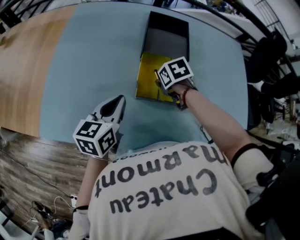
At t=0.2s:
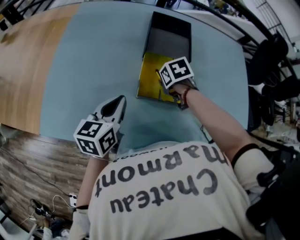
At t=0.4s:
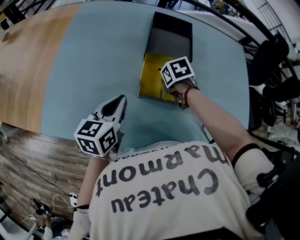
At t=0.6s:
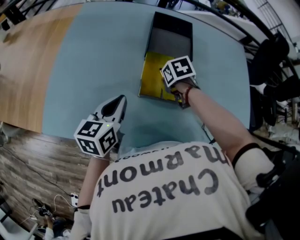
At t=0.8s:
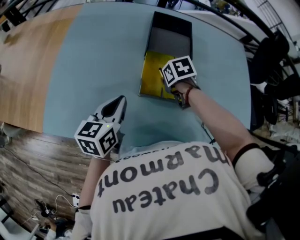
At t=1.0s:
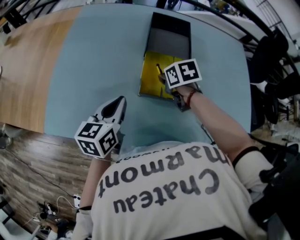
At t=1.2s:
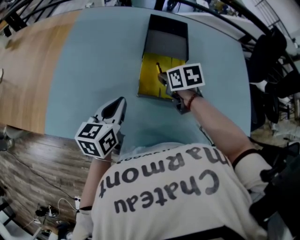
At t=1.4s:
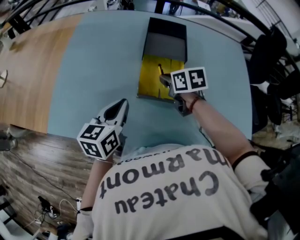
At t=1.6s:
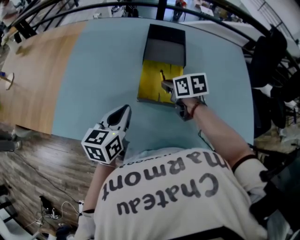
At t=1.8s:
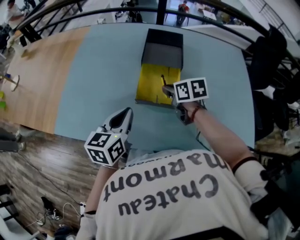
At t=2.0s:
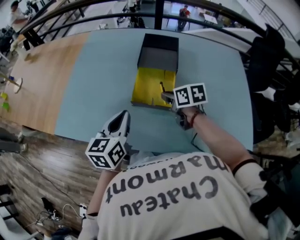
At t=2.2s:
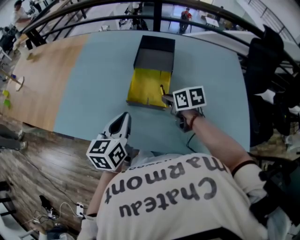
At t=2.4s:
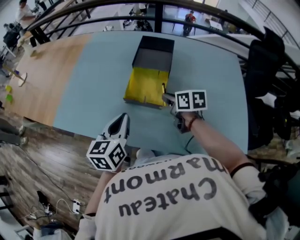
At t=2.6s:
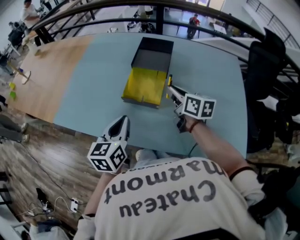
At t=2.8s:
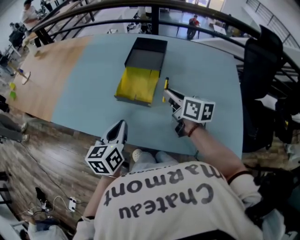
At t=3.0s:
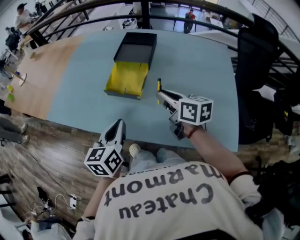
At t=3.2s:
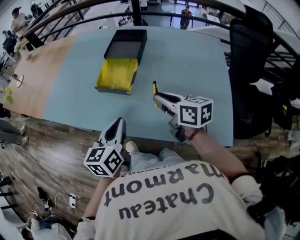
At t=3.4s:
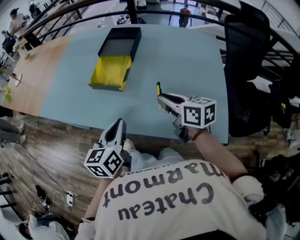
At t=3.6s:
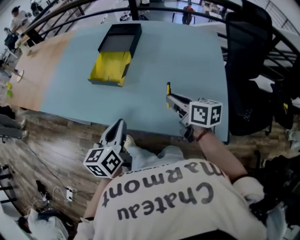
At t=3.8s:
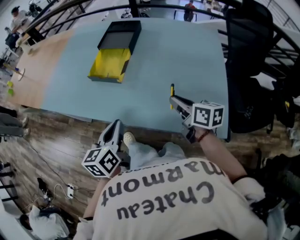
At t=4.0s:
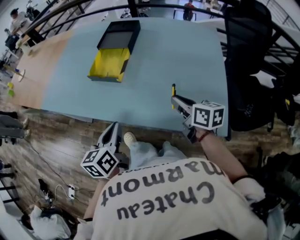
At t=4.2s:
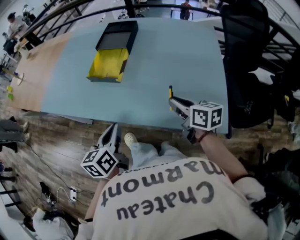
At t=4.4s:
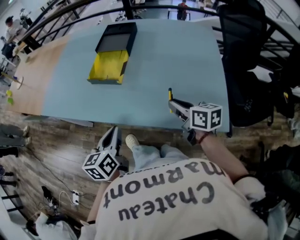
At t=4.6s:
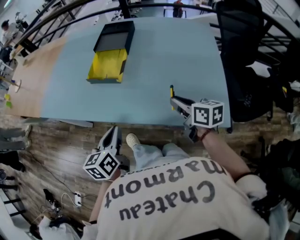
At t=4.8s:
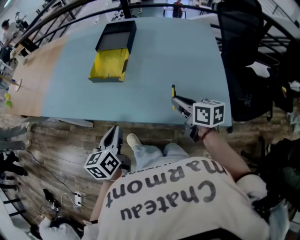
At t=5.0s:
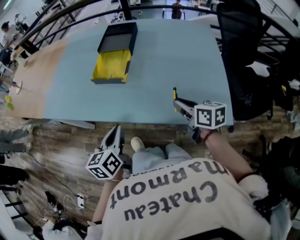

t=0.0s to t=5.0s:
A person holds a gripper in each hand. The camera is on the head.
t=0.0s to t=1.6s: The left gripper ends up approximately 5 cm from where it was, while the right gripper moves upward, some 10 cm, and changes its angle by about 30 degrees.
t=1.6s to t=3.4s: The two grippers go some 30 cm backward and to the right. The right gripper swivels roughly 30 degrees.
t=3.4s to t=5.0s: The left gripper travels to the left and backward by about 10 cm, while the right gripper is displaced backward by approximately 10 cm.

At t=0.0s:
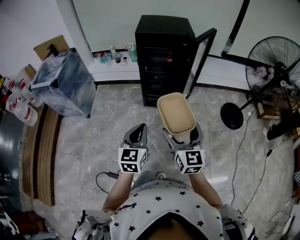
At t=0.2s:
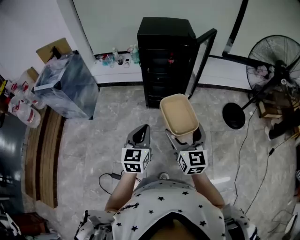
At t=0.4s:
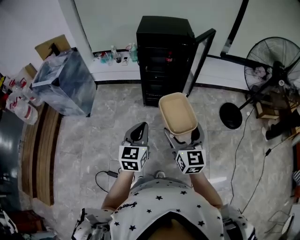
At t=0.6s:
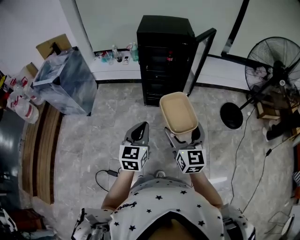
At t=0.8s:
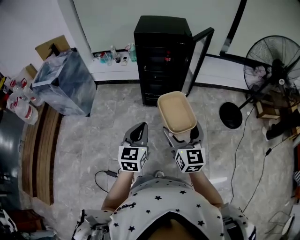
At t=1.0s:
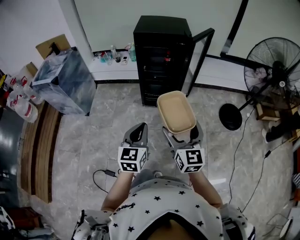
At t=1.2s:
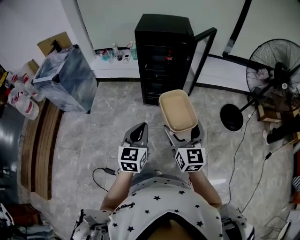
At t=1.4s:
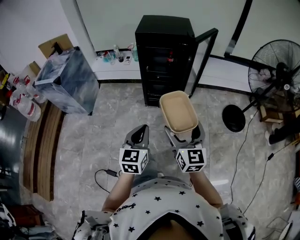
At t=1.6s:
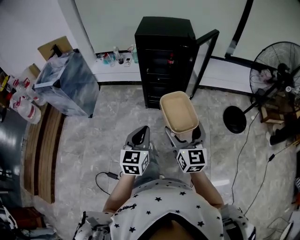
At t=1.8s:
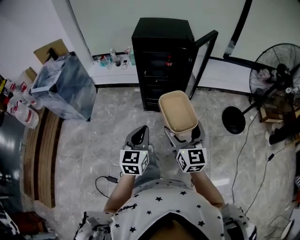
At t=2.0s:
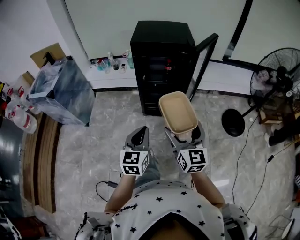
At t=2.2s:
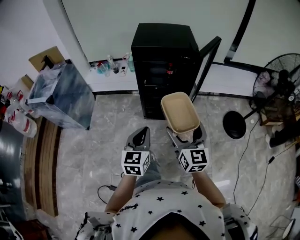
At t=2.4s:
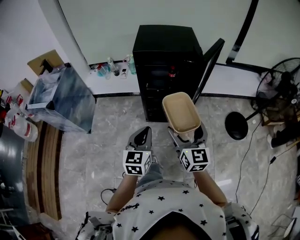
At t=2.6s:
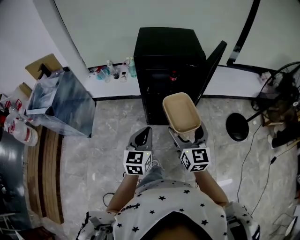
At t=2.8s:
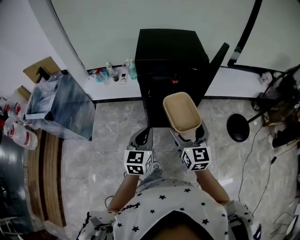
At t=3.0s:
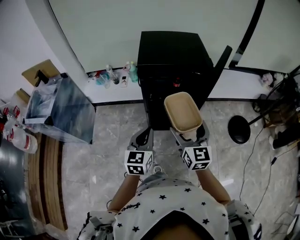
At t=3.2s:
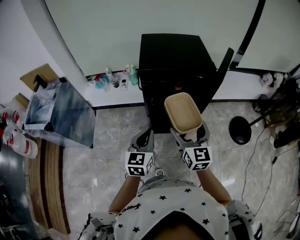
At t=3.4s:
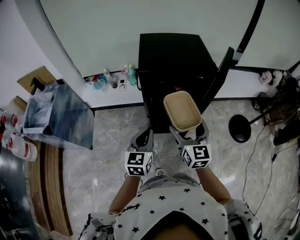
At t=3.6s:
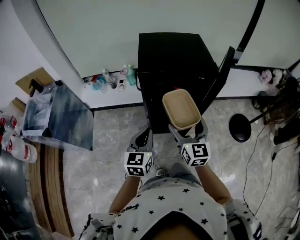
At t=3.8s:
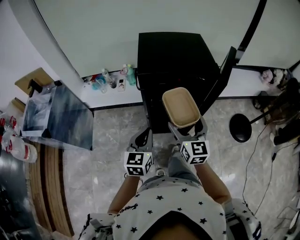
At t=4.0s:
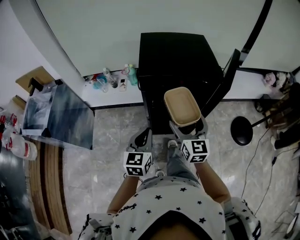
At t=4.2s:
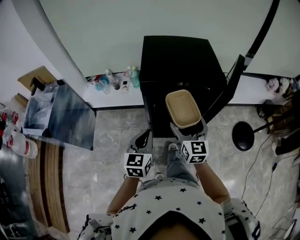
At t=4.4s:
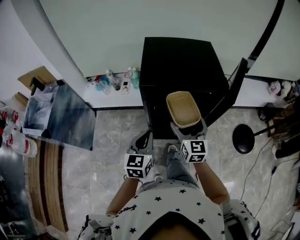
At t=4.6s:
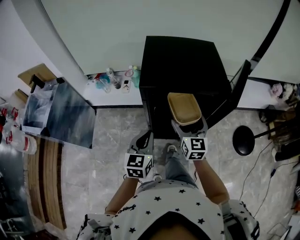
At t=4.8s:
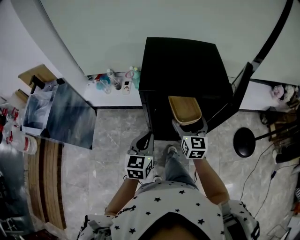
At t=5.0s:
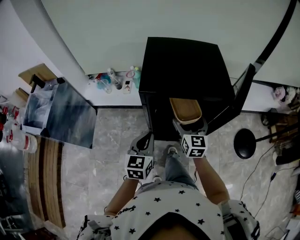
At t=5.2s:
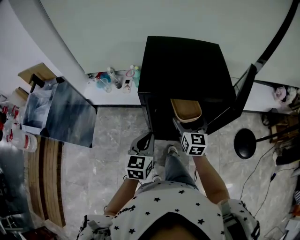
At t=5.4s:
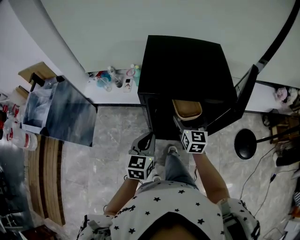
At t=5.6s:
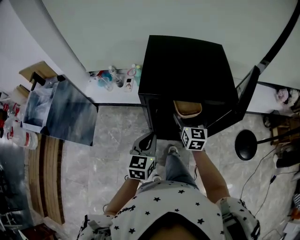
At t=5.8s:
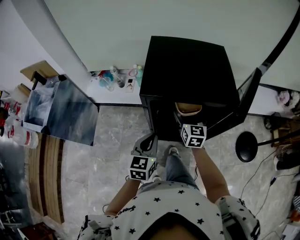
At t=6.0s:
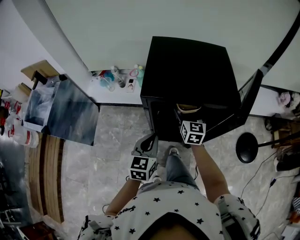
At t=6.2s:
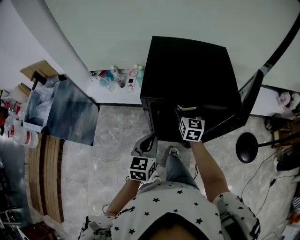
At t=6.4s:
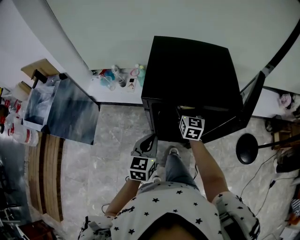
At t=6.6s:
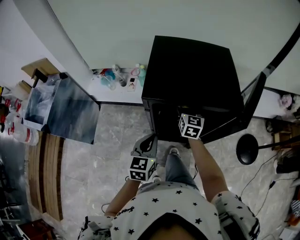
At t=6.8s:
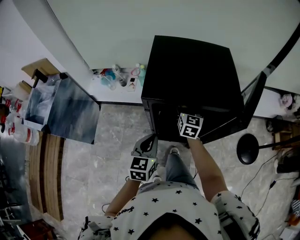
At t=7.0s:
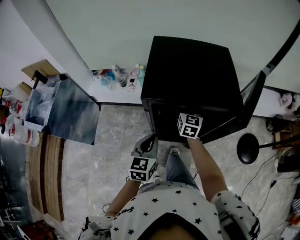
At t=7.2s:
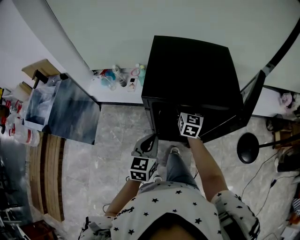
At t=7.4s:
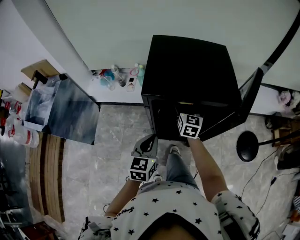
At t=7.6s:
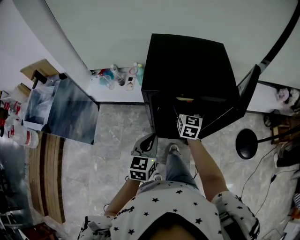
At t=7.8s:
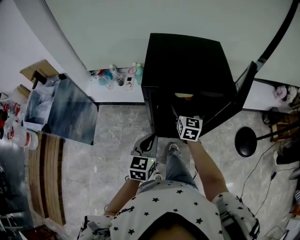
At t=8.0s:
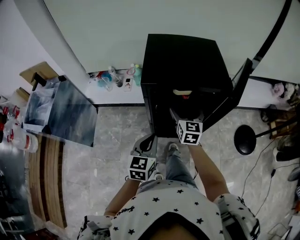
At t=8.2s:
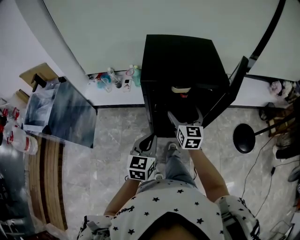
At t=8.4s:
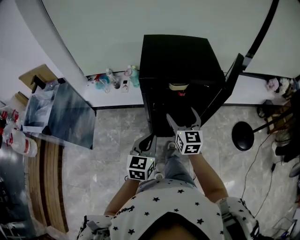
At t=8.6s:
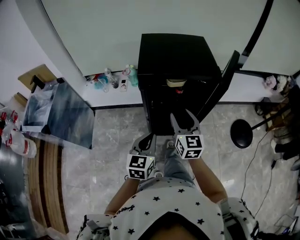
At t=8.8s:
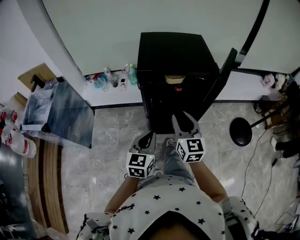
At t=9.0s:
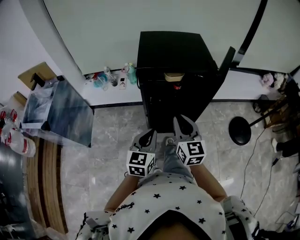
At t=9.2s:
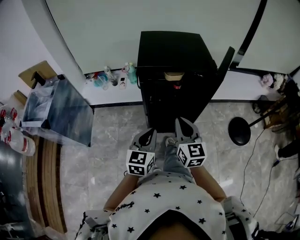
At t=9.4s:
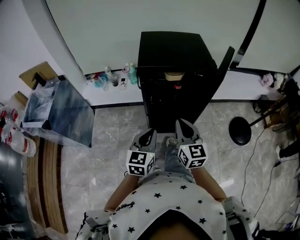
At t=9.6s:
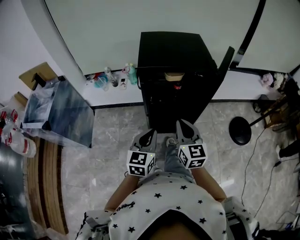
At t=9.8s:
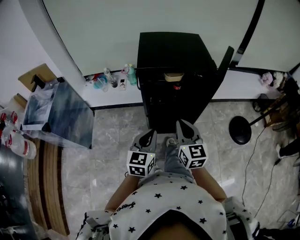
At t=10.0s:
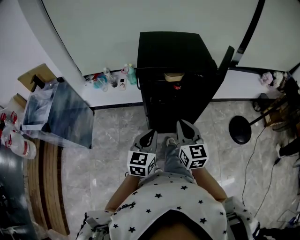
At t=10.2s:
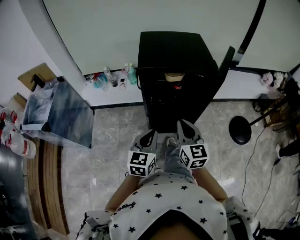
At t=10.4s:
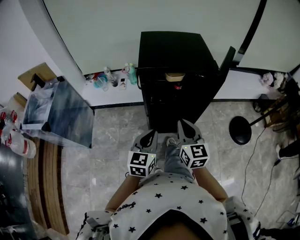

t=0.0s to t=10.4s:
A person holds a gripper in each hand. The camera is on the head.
t=0.0s to t=1.4s: The grippers move only a little.
t=1.4s to t=3.0s: The two grippers go some 30 cm forward.
t=3.0s to t=4.4s: Both grippers move forward, about 15 cm.
t=4.4s to t=6.0s: The right gripper goes about 15 cm forward; the left gripper shifts approximately 5 cm forward.
t=6.0s to t=7.4s: The grippers stay close to where they were, moving slightly.
t=7.4s to t=9.0s: The left gripper heads backward, covering about 15 cm. Meanwhile the right gripper travels backward by roughly 30 cm, and closes up.
t=9.0s to t=10.4s: The grippers stay close to where they were, moving slightly.

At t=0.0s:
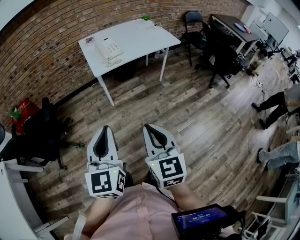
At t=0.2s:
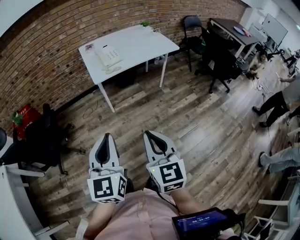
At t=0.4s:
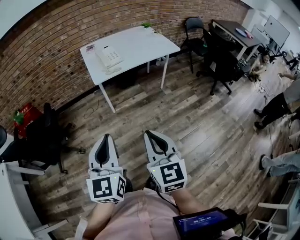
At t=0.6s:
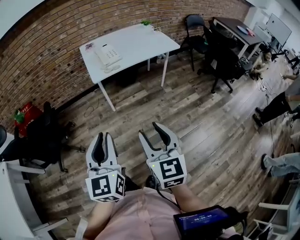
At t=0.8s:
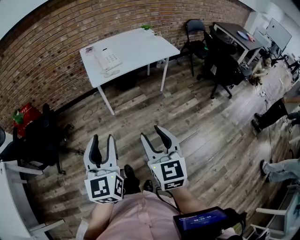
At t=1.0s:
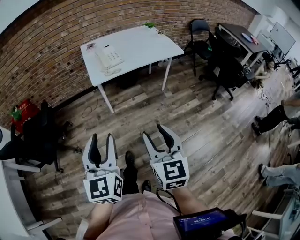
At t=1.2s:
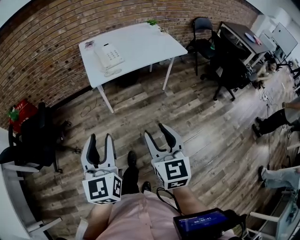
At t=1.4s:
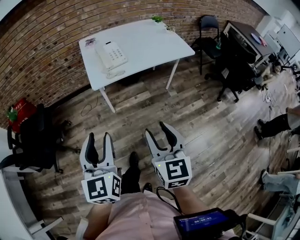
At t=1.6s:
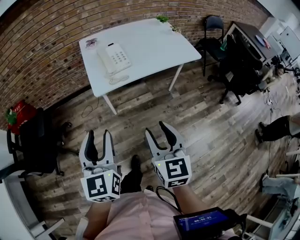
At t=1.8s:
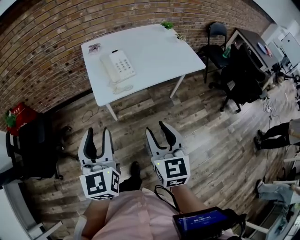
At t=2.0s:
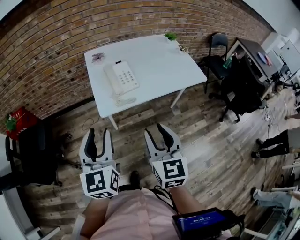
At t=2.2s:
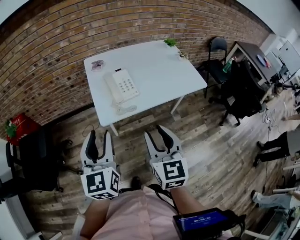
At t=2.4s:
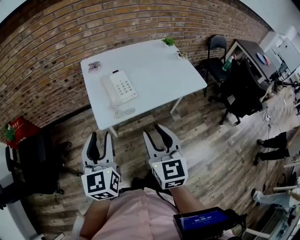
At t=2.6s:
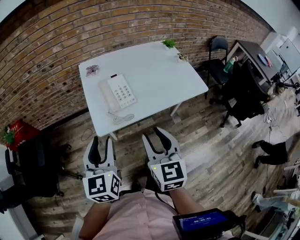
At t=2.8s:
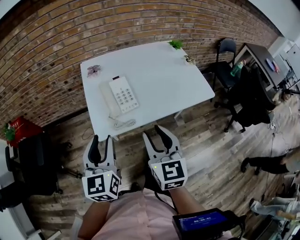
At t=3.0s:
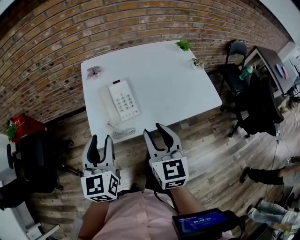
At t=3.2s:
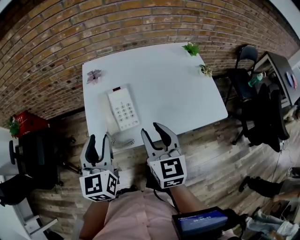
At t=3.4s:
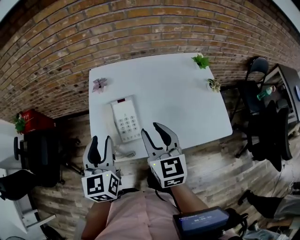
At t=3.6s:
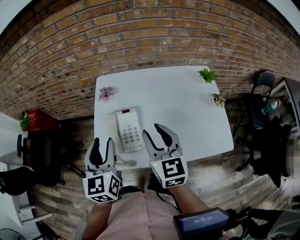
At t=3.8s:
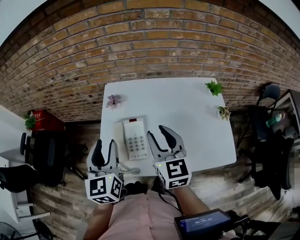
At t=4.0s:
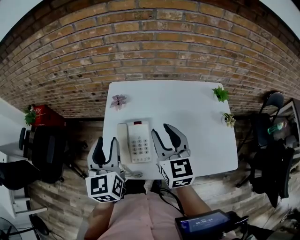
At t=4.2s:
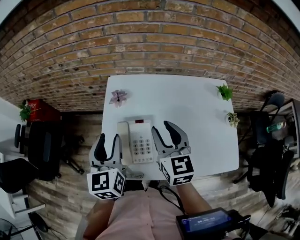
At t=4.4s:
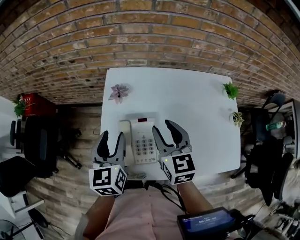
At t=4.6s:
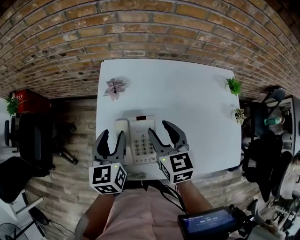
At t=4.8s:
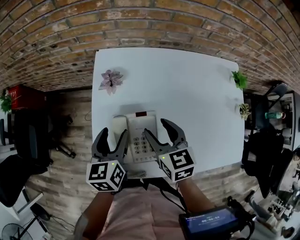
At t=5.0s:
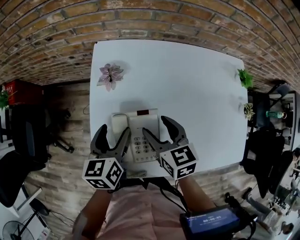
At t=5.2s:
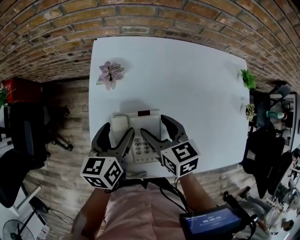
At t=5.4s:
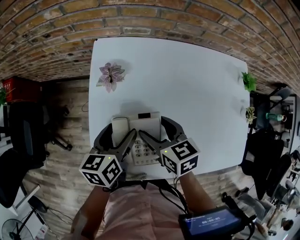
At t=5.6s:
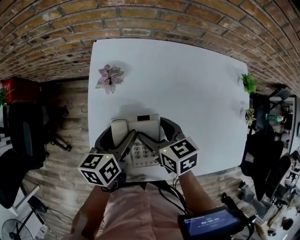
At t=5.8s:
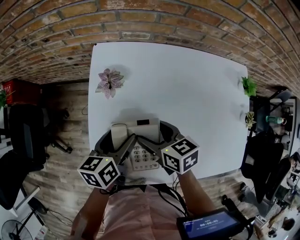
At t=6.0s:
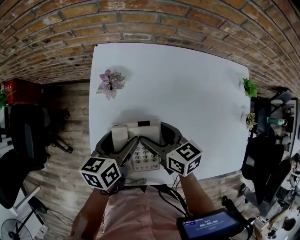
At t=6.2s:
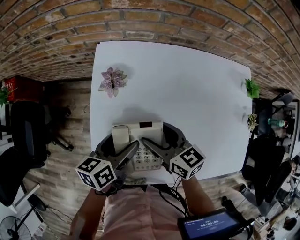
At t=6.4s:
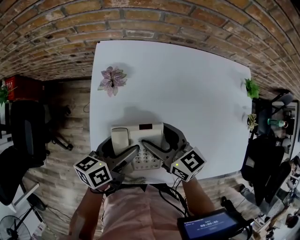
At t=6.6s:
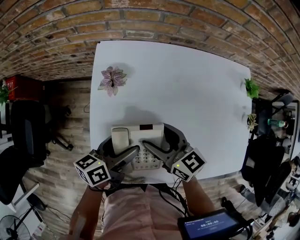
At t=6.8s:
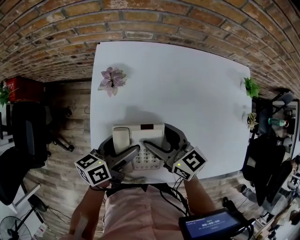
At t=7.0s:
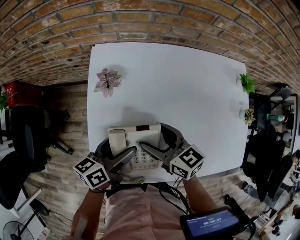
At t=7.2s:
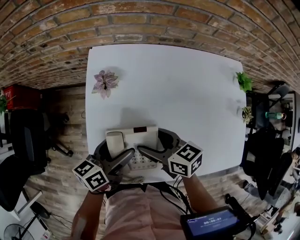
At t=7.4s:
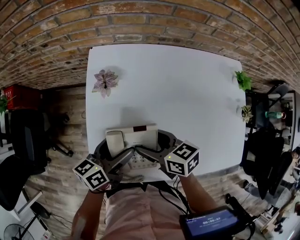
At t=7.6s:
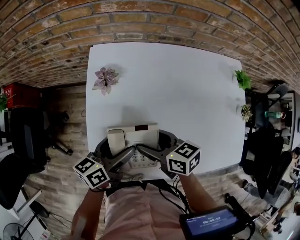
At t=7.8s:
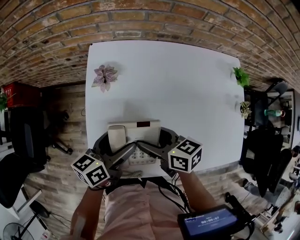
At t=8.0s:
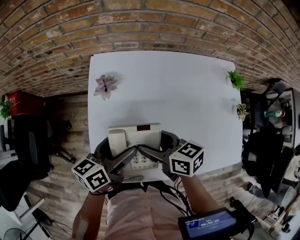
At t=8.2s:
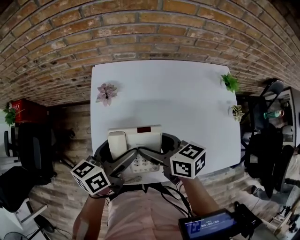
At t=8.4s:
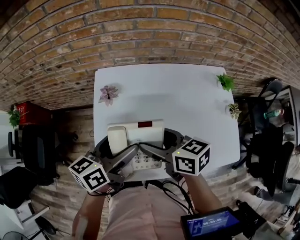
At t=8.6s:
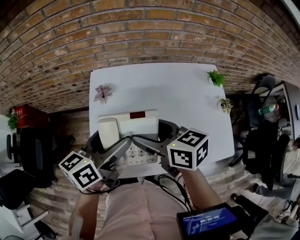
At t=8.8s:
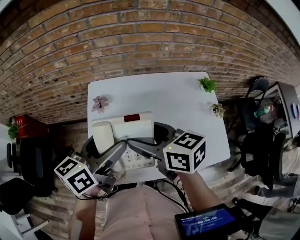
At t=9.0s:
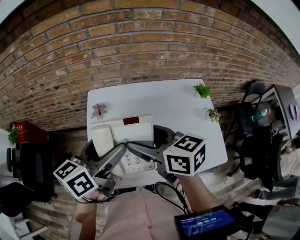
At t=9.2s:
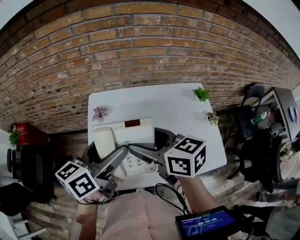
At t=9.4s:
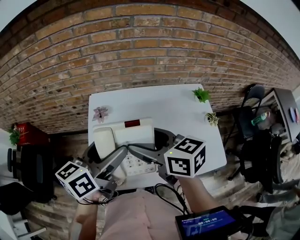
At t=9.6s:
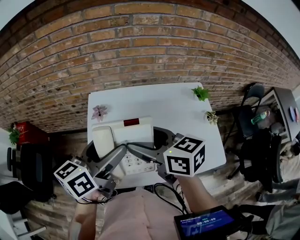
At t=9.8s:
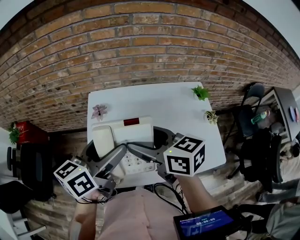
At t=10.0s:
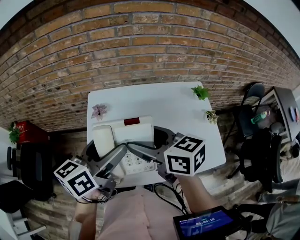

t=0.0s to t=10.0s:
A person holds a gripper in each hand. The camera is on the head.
t=0.0s to t=1.4s: Both grippers travel together forward, approximately 15 cm. The left gripper opens; the right gripper opens up.
t=1.4s to t=2.8s: Both grippers move forward, some 30 cm.
t=2.8s to t=4.2s: The two grippers go roughly 25 cm forward. The left gripper changes its angle by some 20 degrees. Meanwhile the right gripper swivels approximately 20 degrees.
t=4.2s to t=5.8s: Both grippers travel together downward, about 20 cm. The right gripper turns by about 40 degrees, and opens up. The left gripper changes its angle by some 50 degrees, and opens its fingers.
t=7.2s to t=8.6s: Both grippers travel together upward, some 15 cm.
t=8.6s to t=10.0s: The grippers both shift upward by approximately 5 cm.
